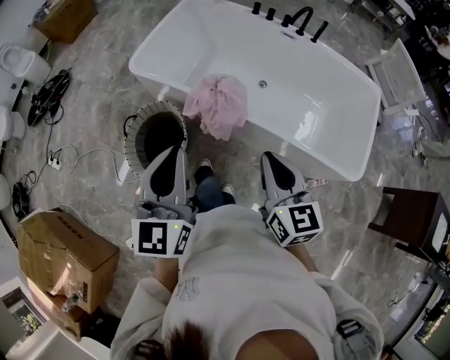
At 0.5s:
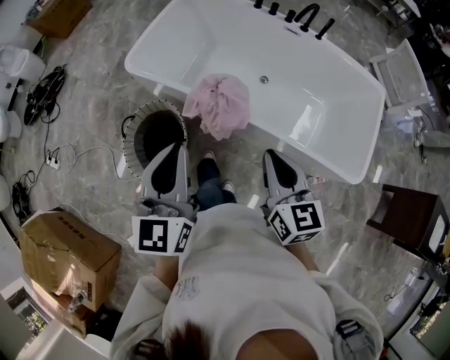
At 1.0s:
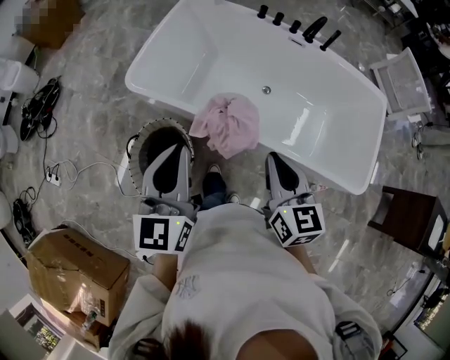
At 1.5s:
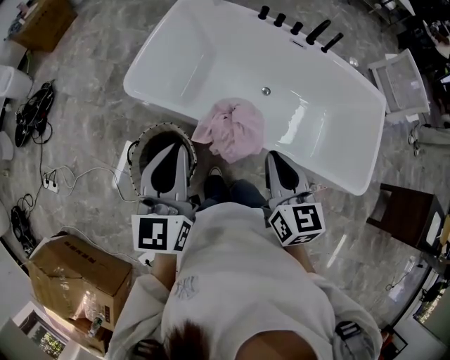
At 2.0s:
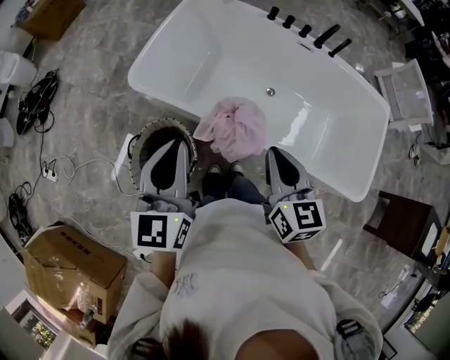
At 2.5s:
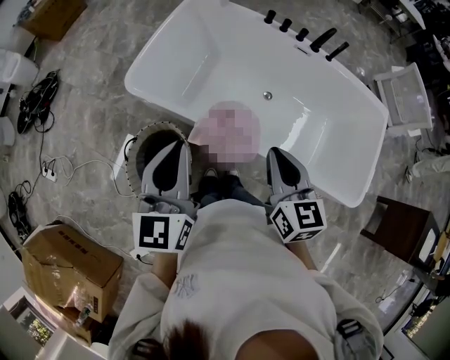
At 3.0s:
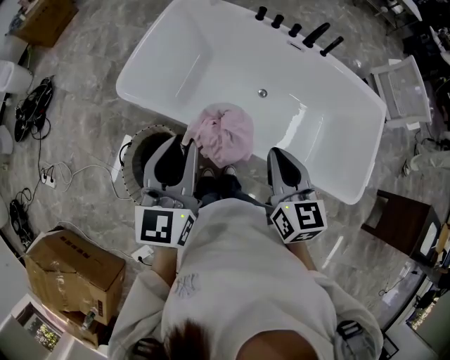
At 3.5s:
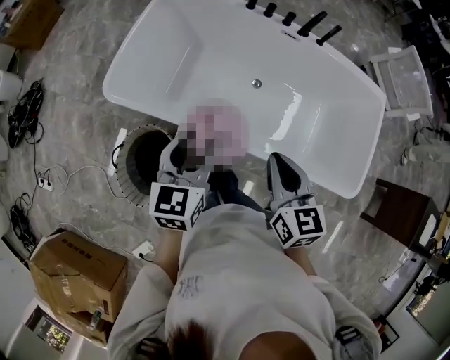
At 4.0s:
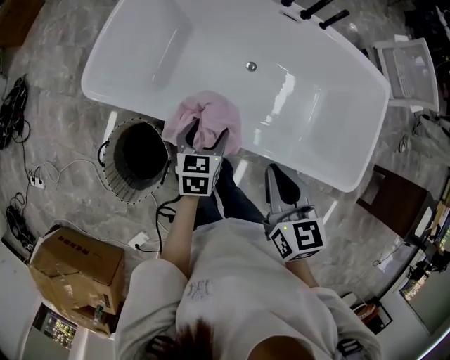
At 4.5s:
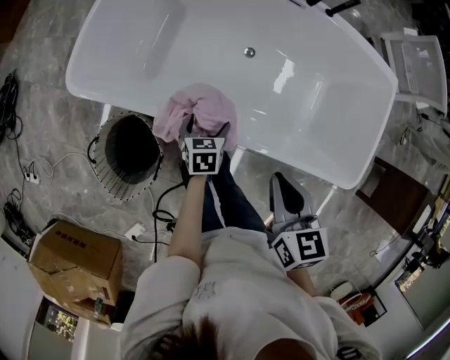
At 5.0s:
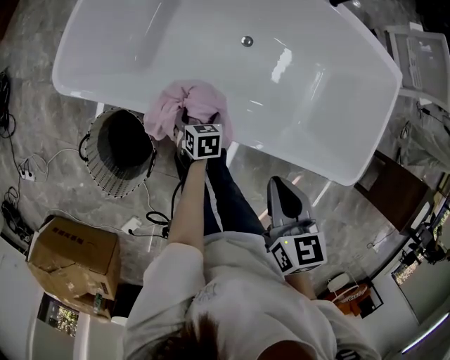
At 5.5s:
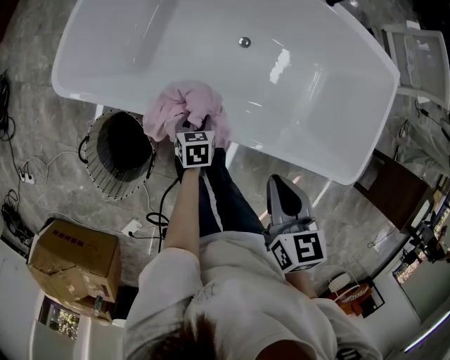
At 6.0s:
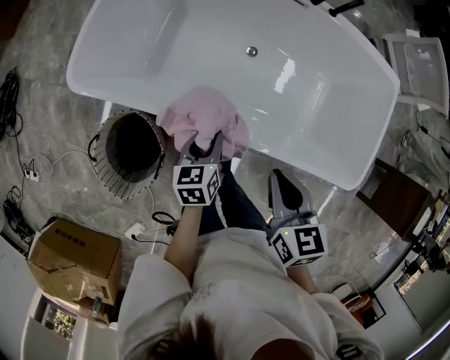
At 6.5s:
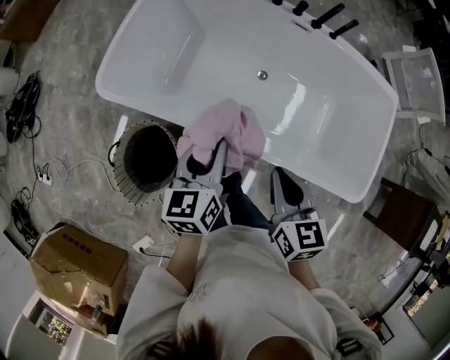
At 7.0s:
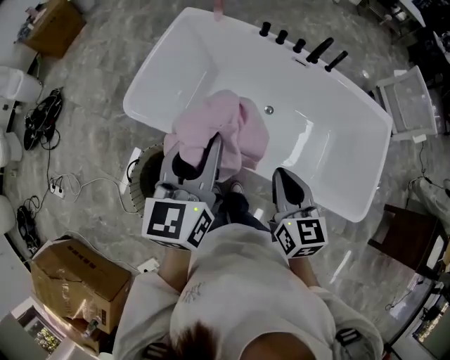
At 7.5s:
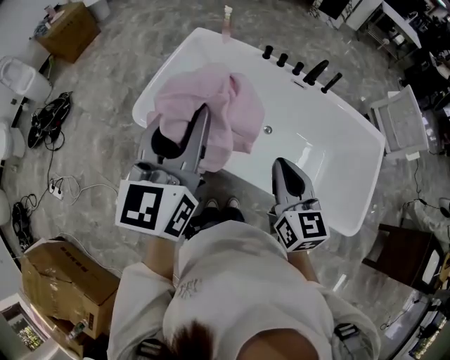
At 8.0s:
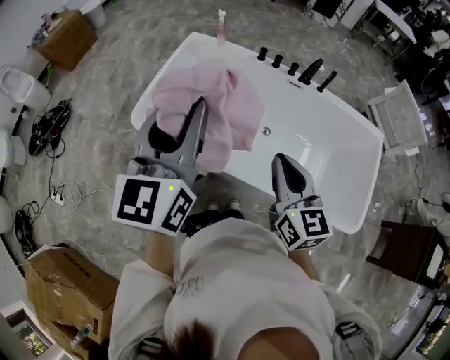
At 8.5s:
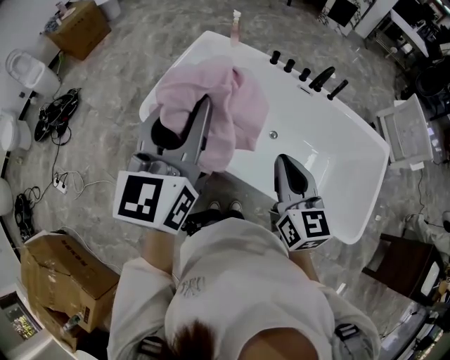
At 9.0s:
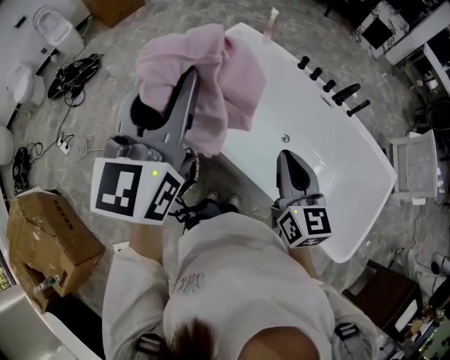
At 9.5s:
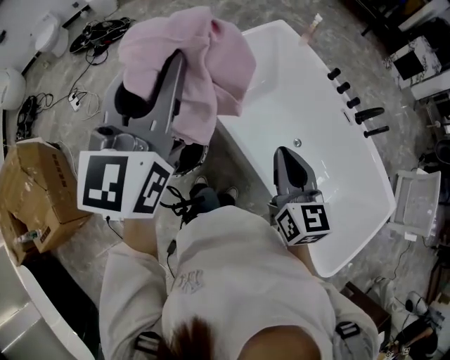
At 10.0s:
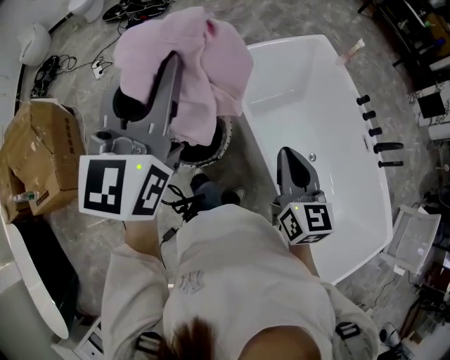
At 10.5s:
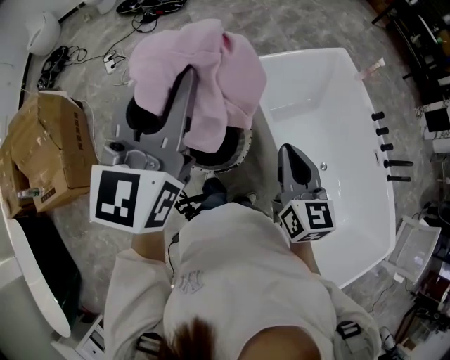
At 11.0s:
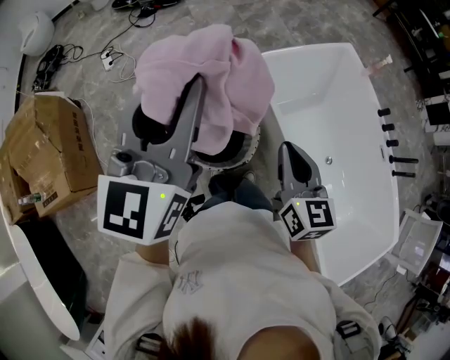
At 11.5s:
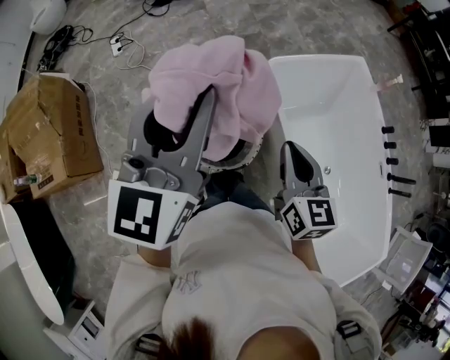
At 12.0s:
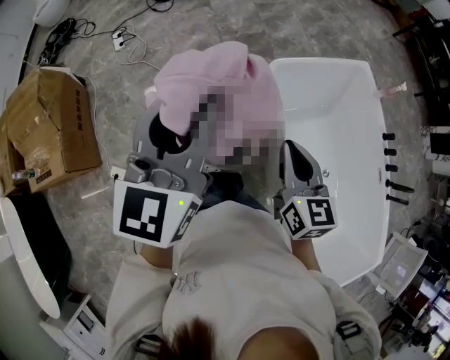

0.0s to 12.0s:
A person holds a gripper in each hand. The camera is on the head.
0.0s to 2.0s: The grippers both shift forward and to the left by some 20 cm.
2.0s to 4.0s: The left gripper heads downward, to the right and forward, covering roughly 35 cm, tilts its fingers roughly 30 degrees downward, and opens up. The right gripper shifts roughly 15 cm to the right, downward and forward.
4.0s to 6.0s: The right gripper travels downward by some 5 cm. The left gripper moves about 20 cm downward and comes back, and closes.
6.0s to 8.0s: The left gripper goes some 50 cm upward, and tips its fingers upward by approximately 40 degrees, while the right gripper heads upward, covering approximately 20 cm, and points its fingers roughly 30 degrees further upward.
8.0s to 10.0s: The right gripper moves approximately 15 cm, and changes its angle by some 40 degrees; the left gripper shifts by about 25 cm, and swivels some 40 degrees.
10.0s to 12.0s: The right gripper goes approximately 20 cm to the left and forward, while the left gripper goes roughly 15 cm to the left, downward and forward.

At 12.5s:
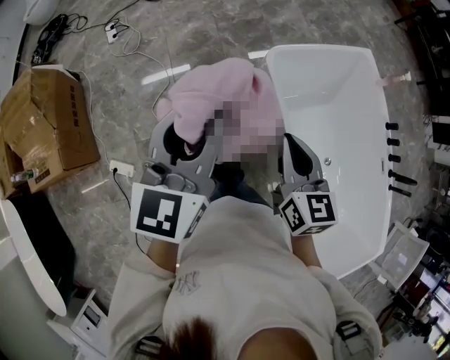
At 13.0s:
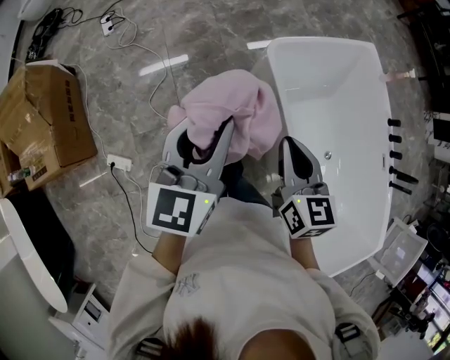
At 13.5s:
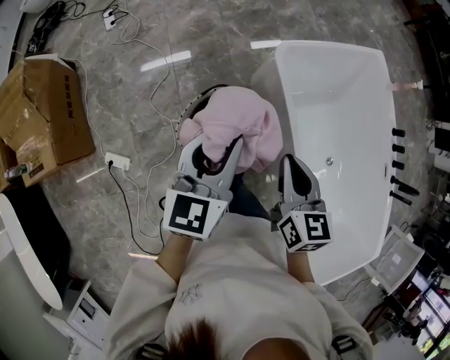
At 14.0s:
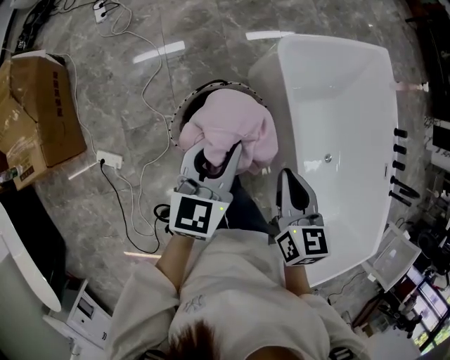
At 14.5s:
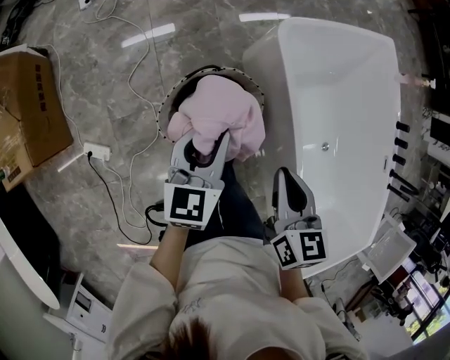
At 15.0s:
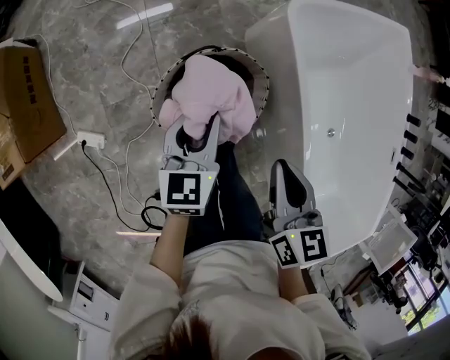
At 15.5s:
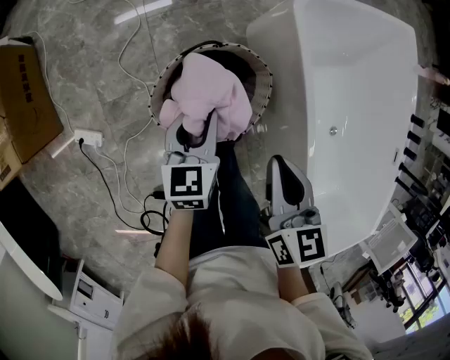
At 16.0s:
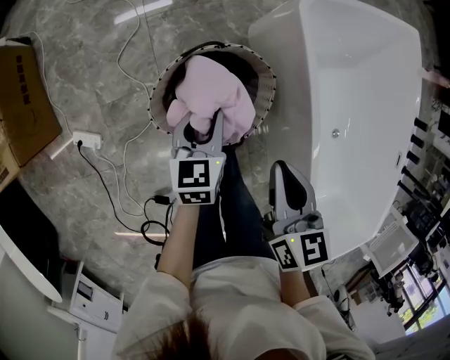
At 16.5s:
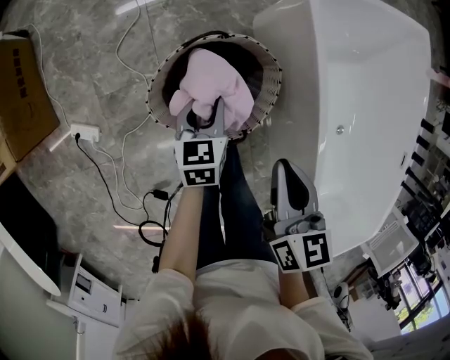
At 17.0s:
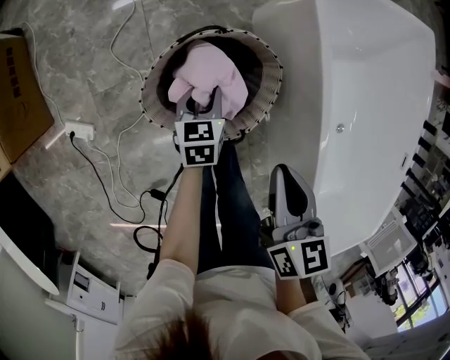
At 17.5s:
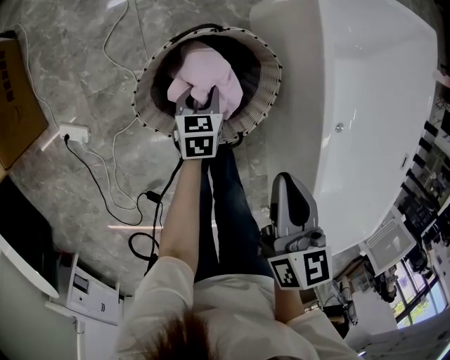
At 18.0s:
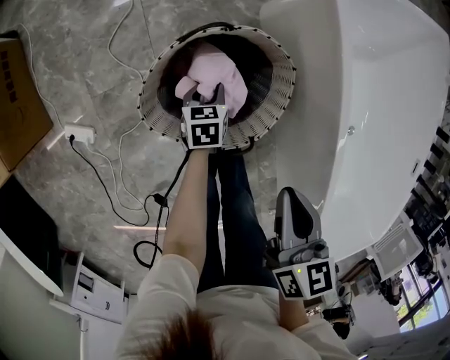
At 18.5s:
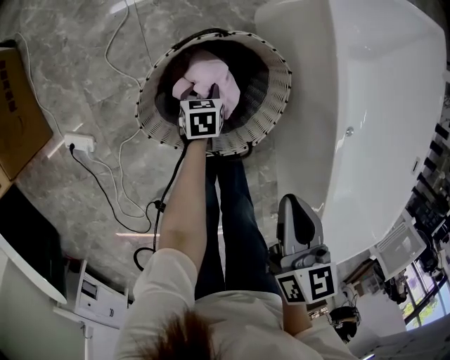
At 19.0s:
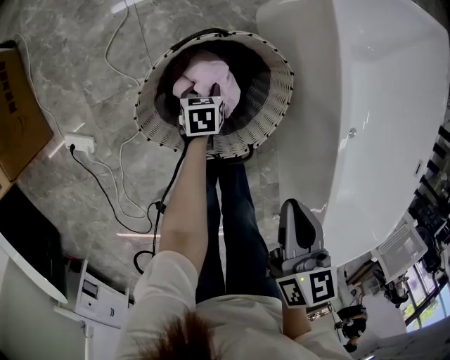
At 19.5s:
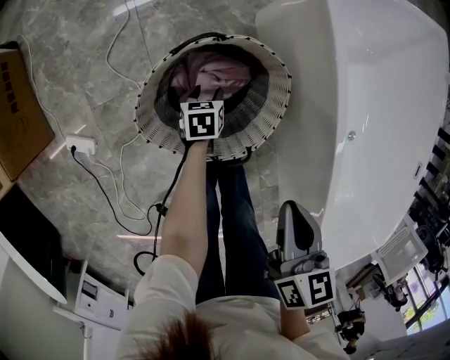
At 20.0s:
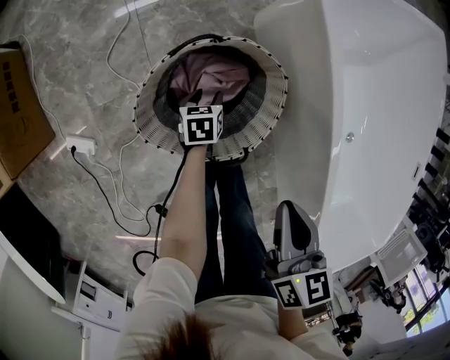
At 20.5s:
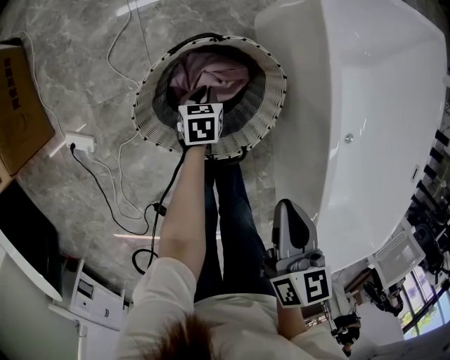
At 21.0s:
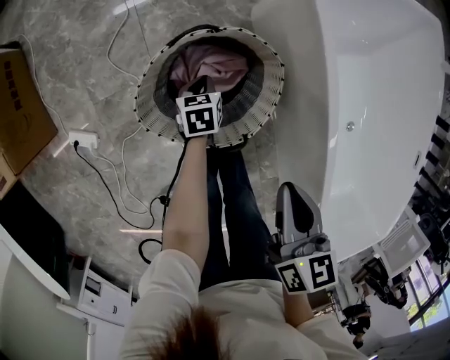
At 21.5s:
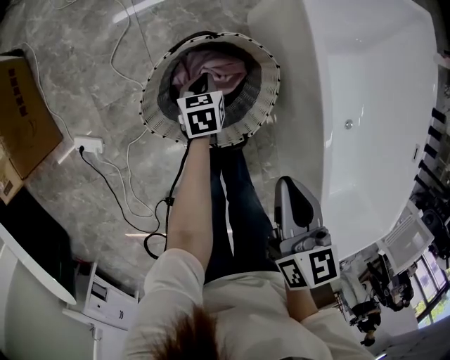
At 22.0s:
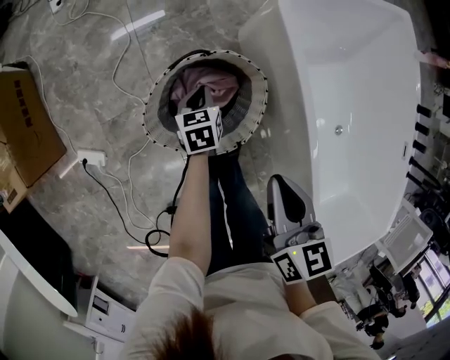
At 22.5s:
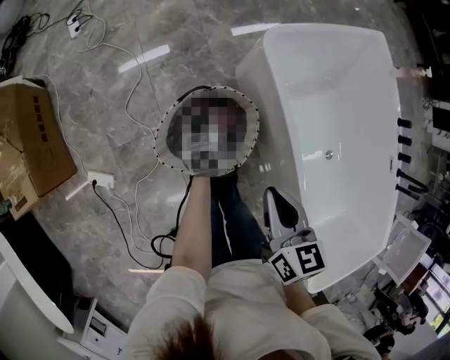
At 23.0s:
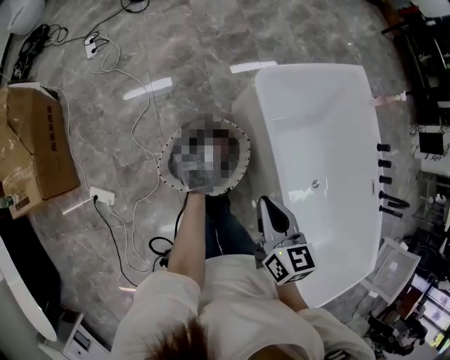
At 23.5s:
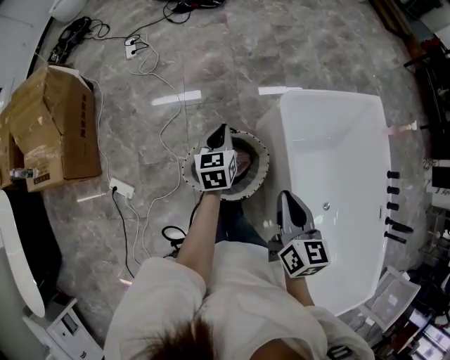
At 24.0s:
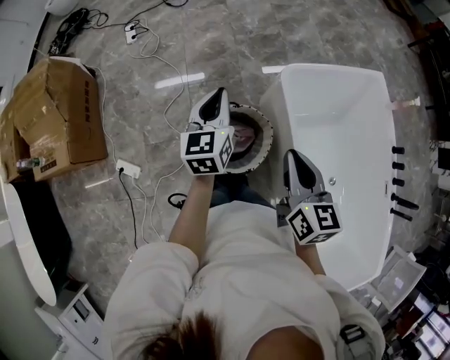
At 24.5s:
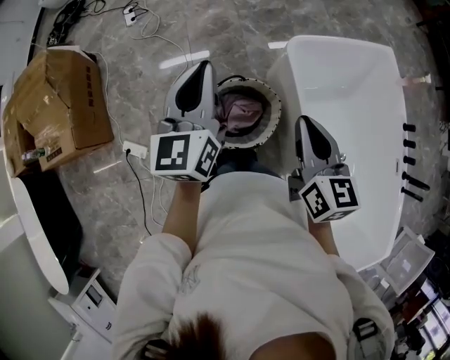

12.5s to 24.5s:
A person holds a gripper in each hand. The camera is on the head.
12.5s to 14.5s: The right gripper is displaced downward by about 15 cm. The left gripper heads downward, covering approximately 30 cm, and rotates some 20 degrees.
14.5s to 16.5s: The right gripper moves downward, about 10 cm, while the left gripper shifts about 25 cm downward, and rotates approximately 20 degrees.
16.5s to 18.5s: The right gripper shifts some 5 cm downward, while the left gripper shifts about 20 cm downward.
18.5s to 20.5s: The grippers move only a little.
20.5s to 22.5s: The right gripper heads upward, covering roughly 15 cm; the left gripper goes about 25 cm upward.
22.5s to 24.5s: The left gripper is displaced upward by approximately 40 cm, and tips its fingers upward by approximately 40 degrees; the right gripper goes approximately 20 cm upward.

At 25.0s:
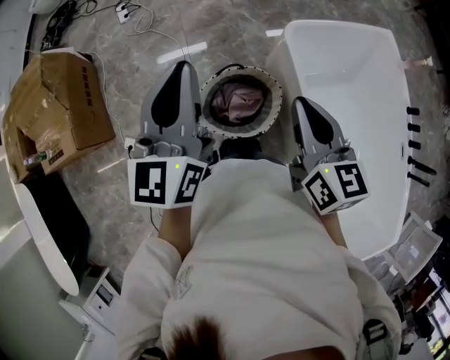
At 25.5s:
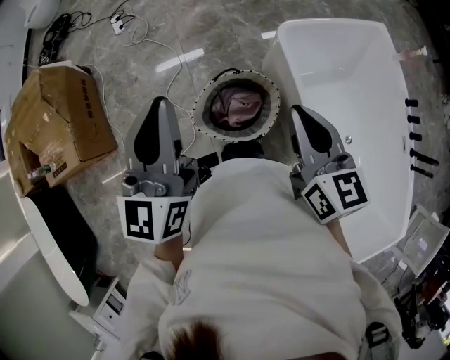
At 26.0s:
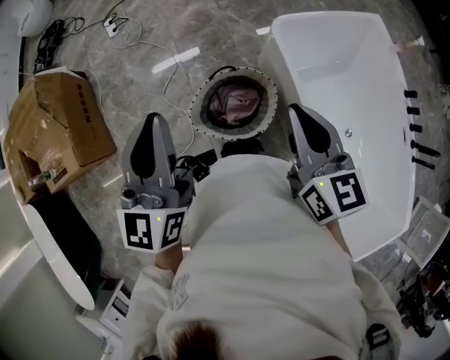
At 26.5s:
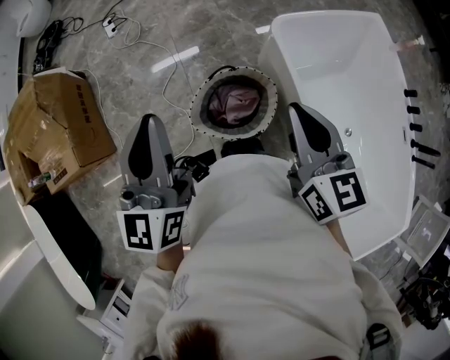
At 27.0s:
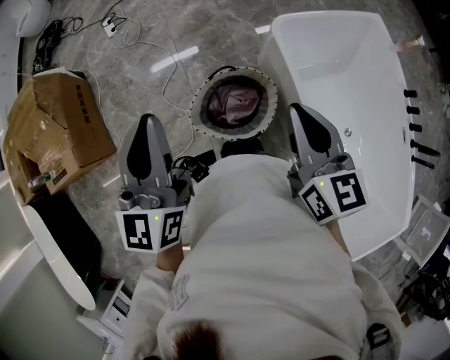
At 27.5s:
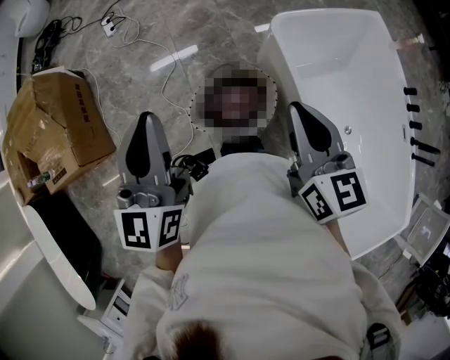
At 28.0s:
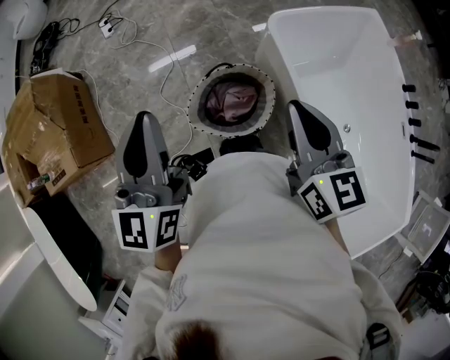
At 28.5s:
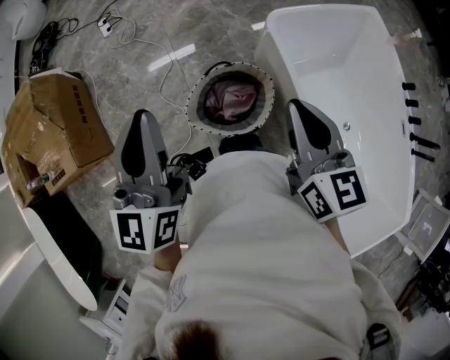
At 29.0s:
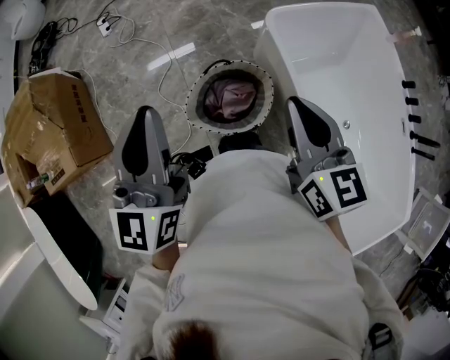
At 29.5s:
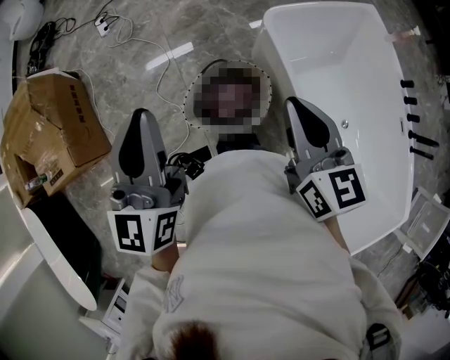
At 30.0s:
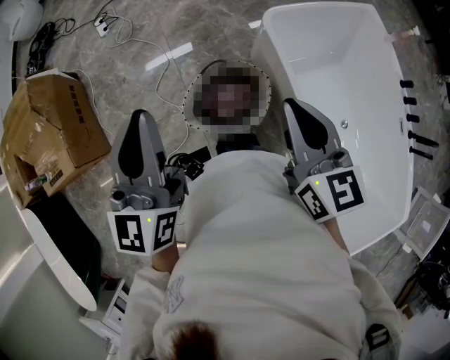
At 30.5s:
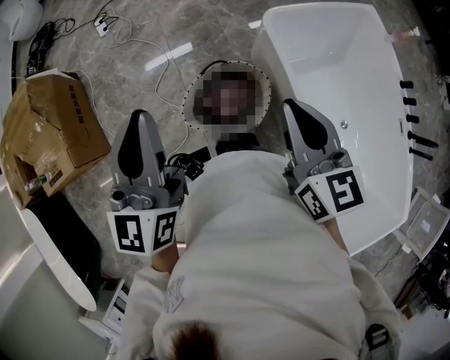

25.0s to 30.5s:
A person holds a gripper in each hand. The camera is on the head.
25.0s to 27.0s: The left gripper shifts by approximately 5 cm.
27.0s to 28.5s: Both grippers stay about where they are.
28.5s to 30.5s: Both grippers stay about where they are.
